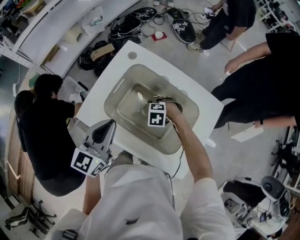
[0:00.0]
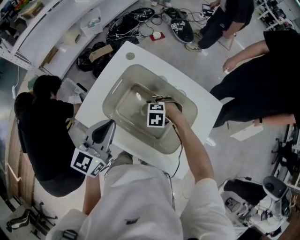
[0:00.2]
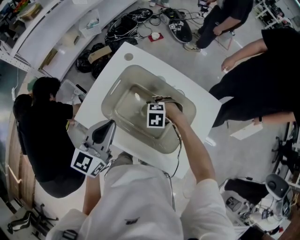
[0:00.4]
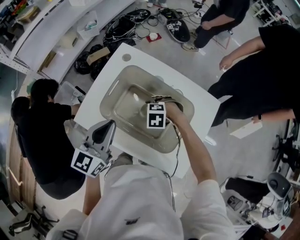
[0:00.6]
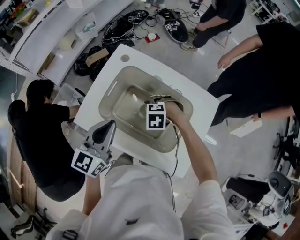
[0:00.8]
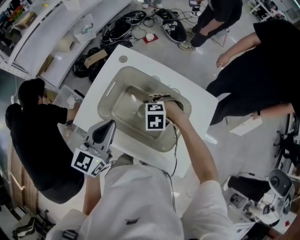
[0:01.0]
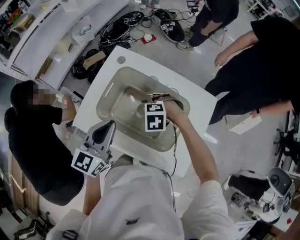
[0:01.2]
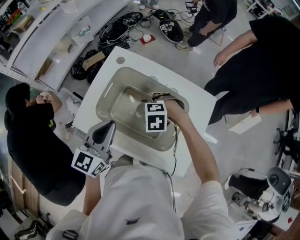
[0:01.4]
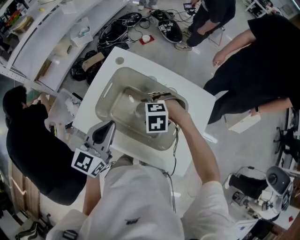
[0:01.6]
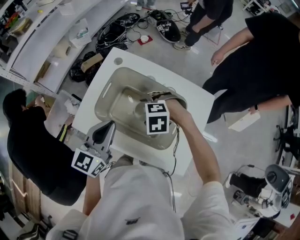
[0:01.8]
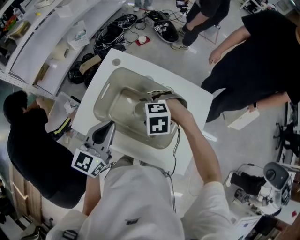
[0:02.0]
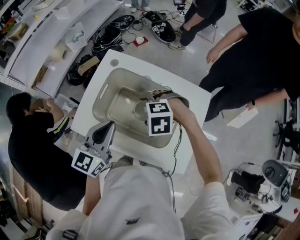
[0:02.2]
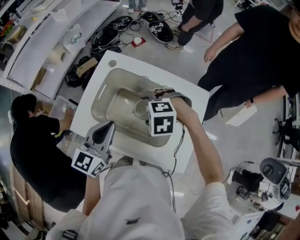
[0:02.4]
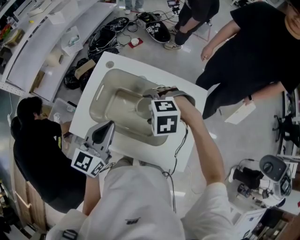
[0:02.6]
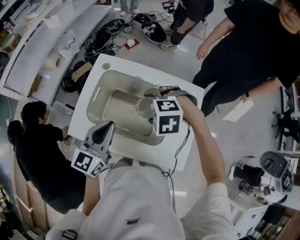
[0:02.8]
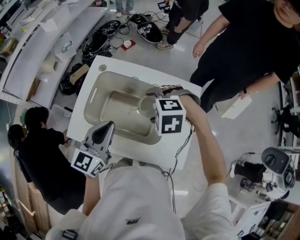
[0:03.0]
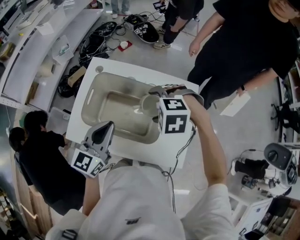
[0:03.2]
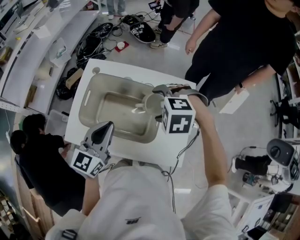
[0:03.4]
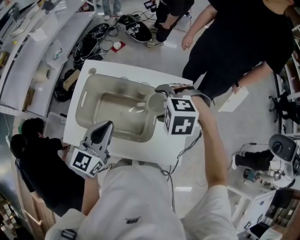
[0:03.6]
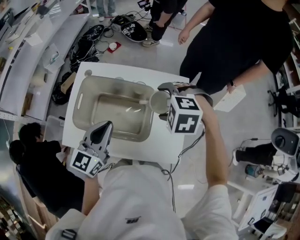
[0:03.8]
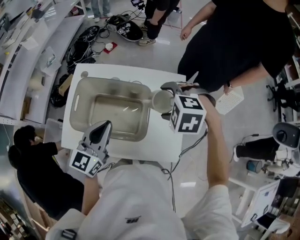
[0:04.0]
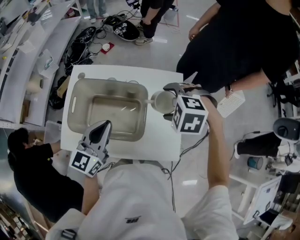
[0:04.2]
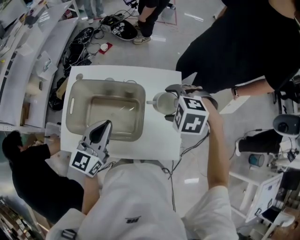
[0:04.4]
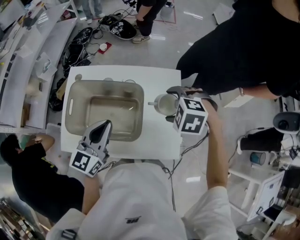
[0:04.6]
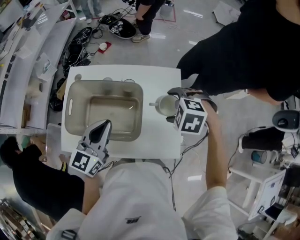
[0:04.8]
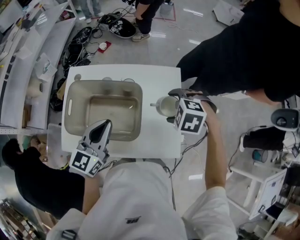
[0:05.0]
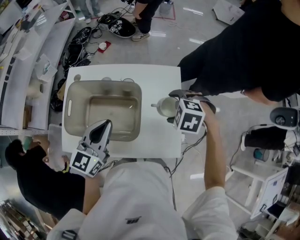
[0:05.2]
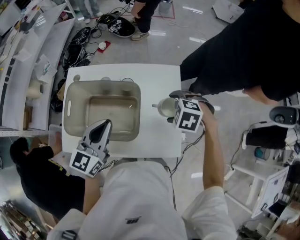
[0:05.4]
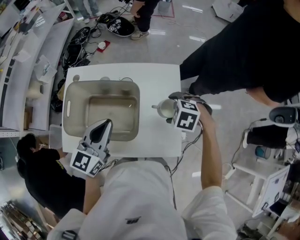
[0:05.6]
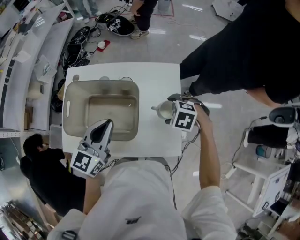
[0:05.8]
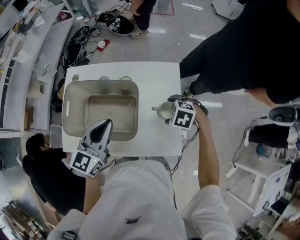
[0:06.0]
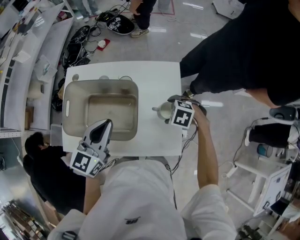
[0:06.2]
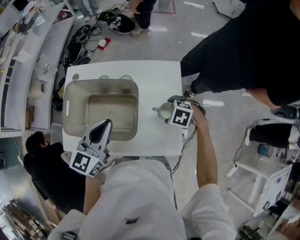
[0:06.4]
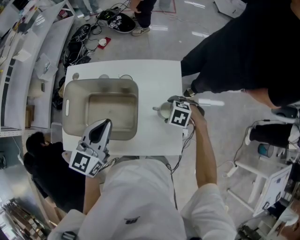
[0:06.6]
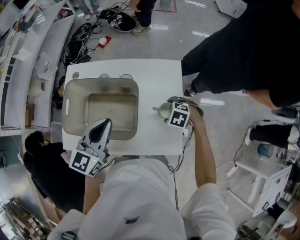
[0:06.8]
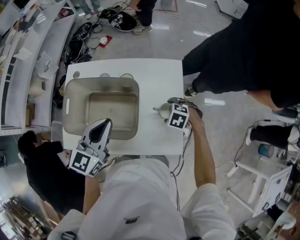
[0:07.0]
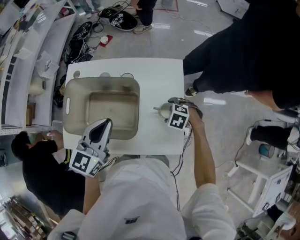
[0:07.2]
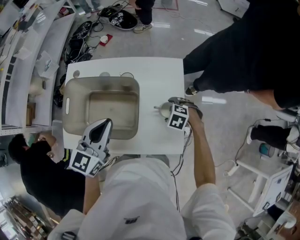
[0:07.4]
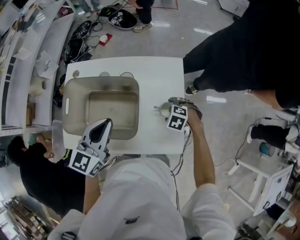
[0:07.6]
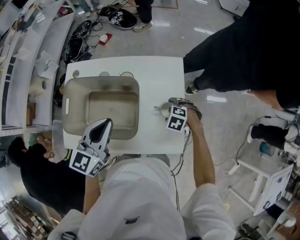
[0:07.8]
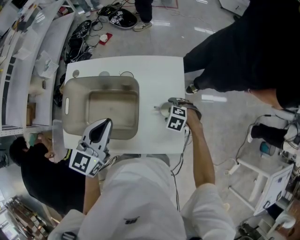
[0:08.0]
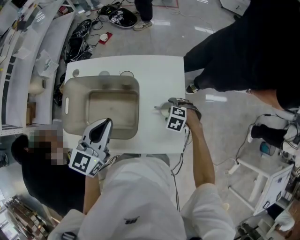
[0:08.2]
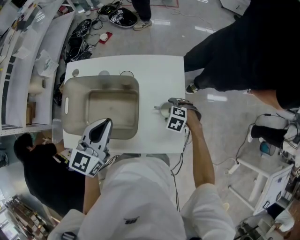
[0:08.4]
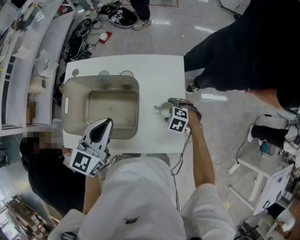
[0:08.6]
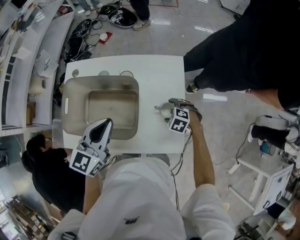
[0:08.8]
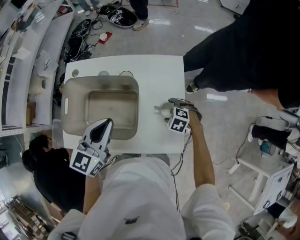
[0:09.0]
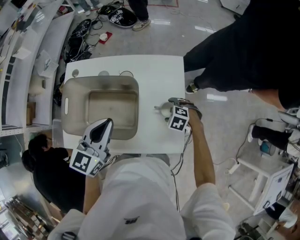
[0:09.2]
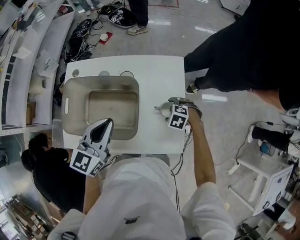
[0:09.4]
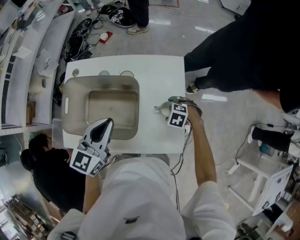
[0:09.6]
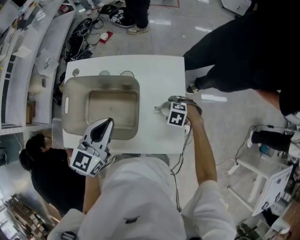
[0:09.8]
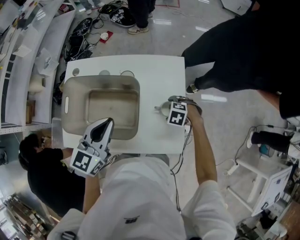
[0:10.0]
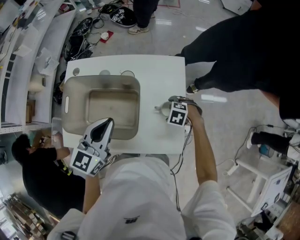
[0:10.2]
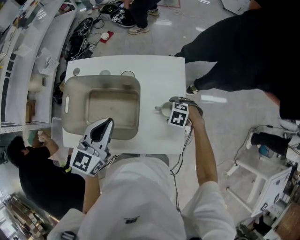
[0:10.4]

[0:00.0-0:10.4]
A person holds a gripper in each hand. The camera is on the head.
0:00.0 to 0:01.4: The right gripper is displaced upward by approximately 10 cm.
0:01.4 to 0:03.0: The left gripper ends up approximately 5 cm from where it was. The right gripper moves upward, about 15 cm.
0:03.0 to 0:04.4: The left gripper goes approximately 10 cm to the right. The right gripper heads to the right, covering about 15 cm, and rotates some 20 degrees.
0:04.4 to 0:06.0: The right gripper heads downward, covering roughly 15 cm.
0:06.0 to 0:07.4: The right gripper heads downward, covering about 10 cm.
0:07.4 to 0:10.4: The grippers stay close to where they were, moving slightly.

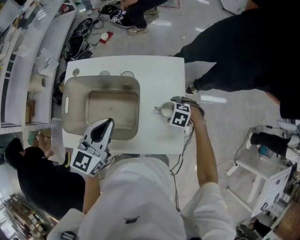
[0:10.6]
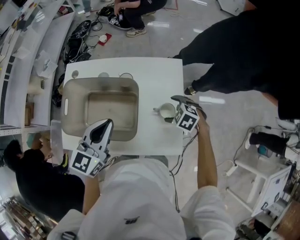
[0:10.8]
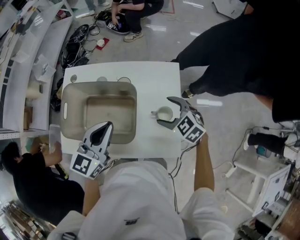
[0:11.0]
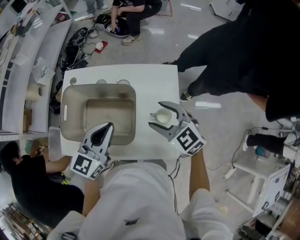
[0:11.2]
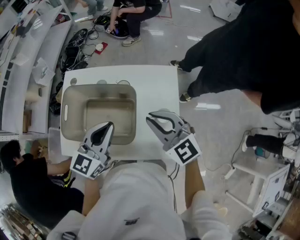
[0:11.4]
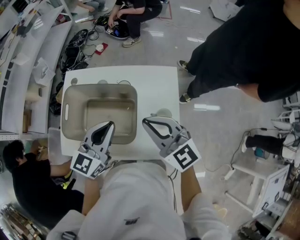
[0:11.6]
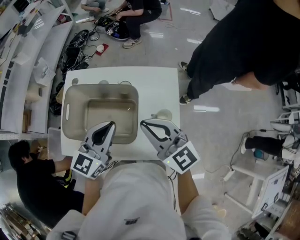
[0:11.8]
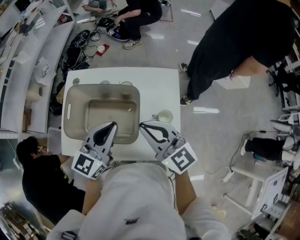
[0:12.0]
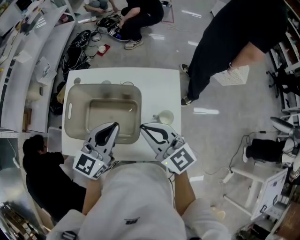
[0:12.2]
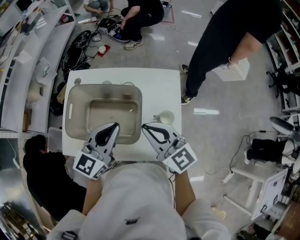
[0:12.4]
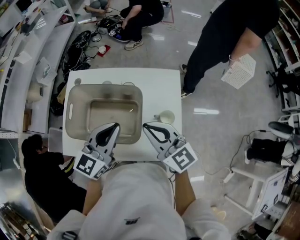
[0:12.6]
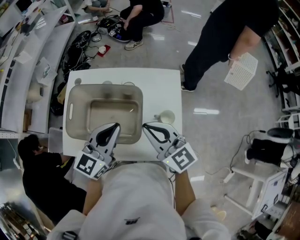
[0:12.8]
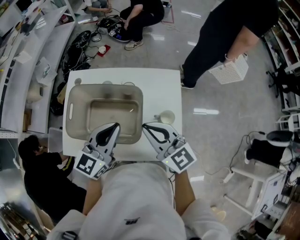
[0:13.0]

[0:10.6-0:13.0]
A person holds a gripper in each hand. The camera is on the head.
0:10.6 to 0:11.8: The right gripper is displaced upward by approximately 35 cm, points its fingers some 80 degrees further upward, and closes up.
0:11.8 to 0:13.0: The grippers move only a little.

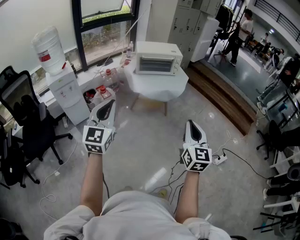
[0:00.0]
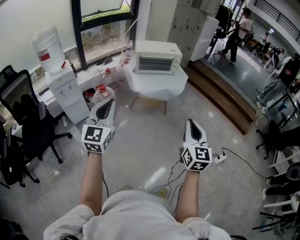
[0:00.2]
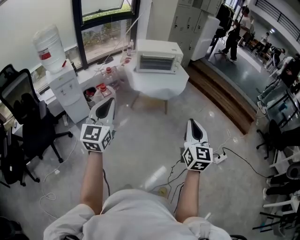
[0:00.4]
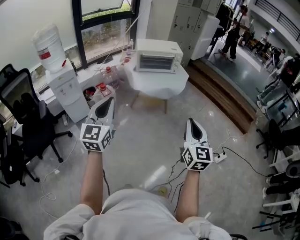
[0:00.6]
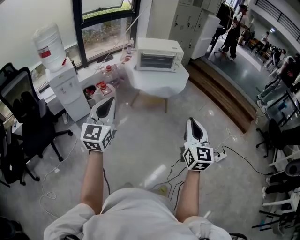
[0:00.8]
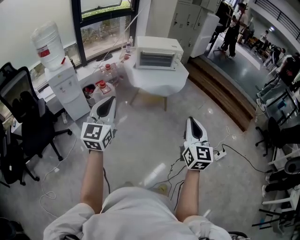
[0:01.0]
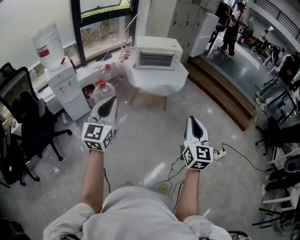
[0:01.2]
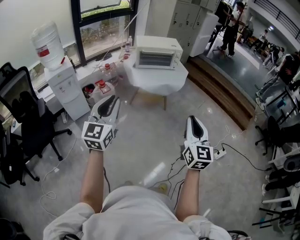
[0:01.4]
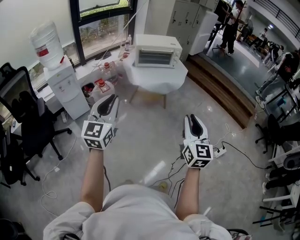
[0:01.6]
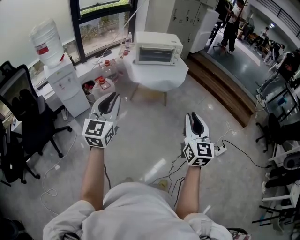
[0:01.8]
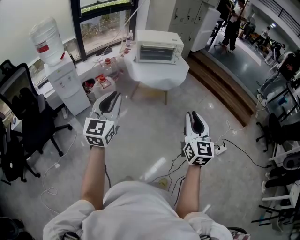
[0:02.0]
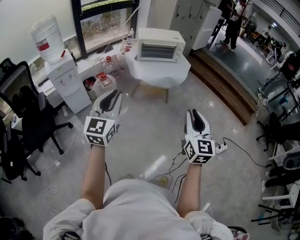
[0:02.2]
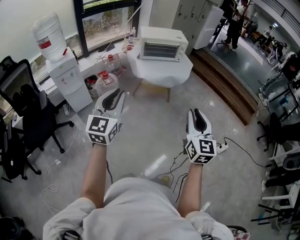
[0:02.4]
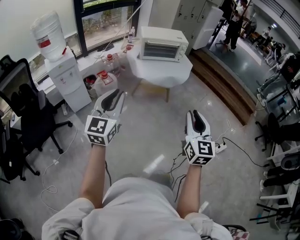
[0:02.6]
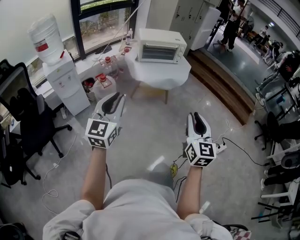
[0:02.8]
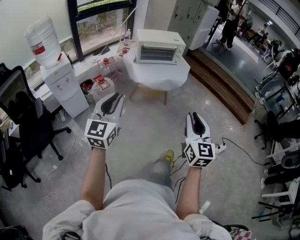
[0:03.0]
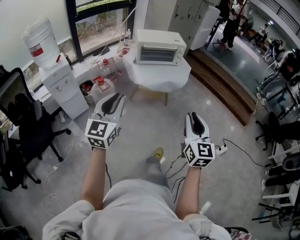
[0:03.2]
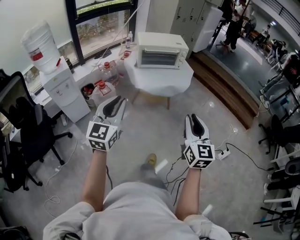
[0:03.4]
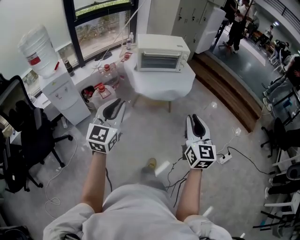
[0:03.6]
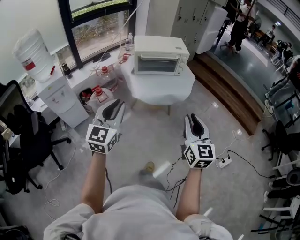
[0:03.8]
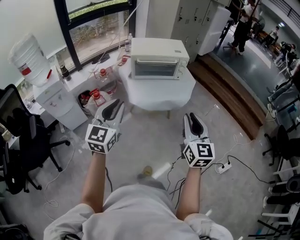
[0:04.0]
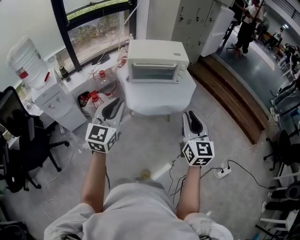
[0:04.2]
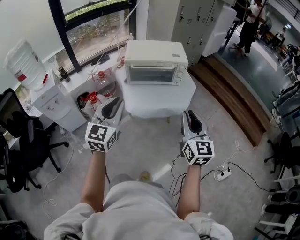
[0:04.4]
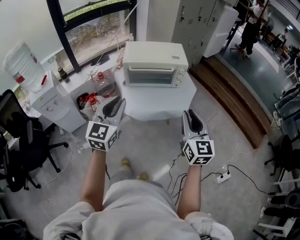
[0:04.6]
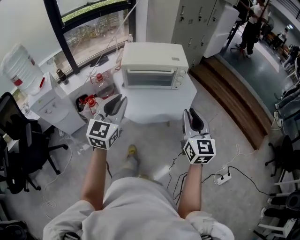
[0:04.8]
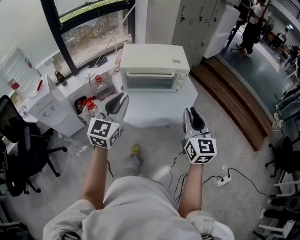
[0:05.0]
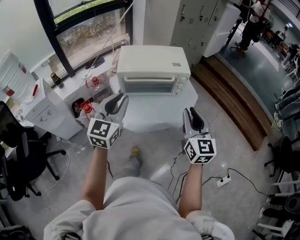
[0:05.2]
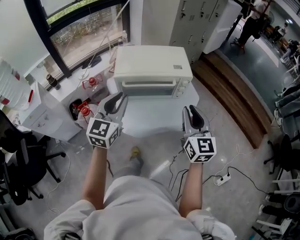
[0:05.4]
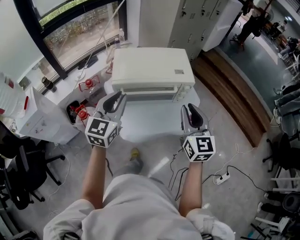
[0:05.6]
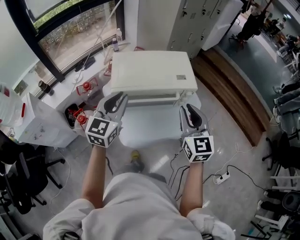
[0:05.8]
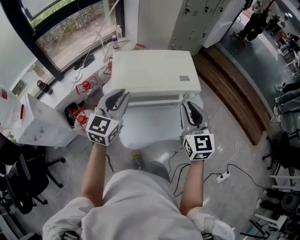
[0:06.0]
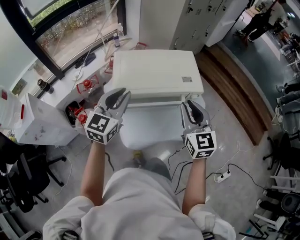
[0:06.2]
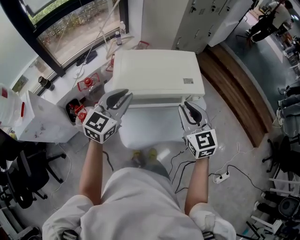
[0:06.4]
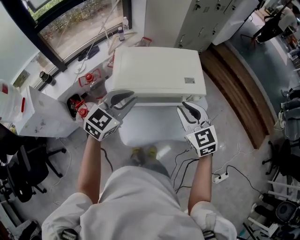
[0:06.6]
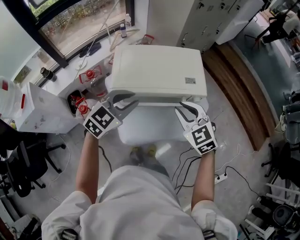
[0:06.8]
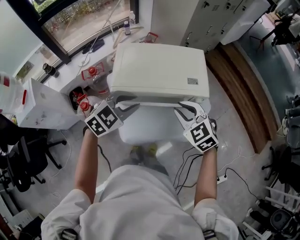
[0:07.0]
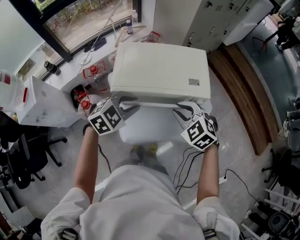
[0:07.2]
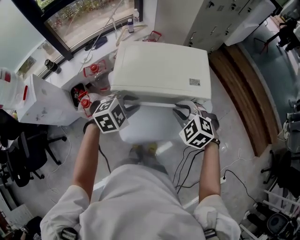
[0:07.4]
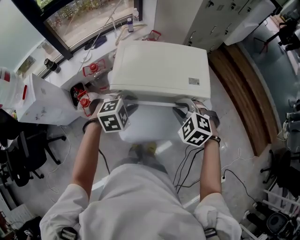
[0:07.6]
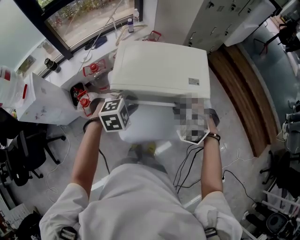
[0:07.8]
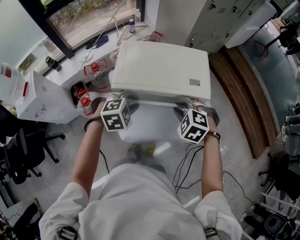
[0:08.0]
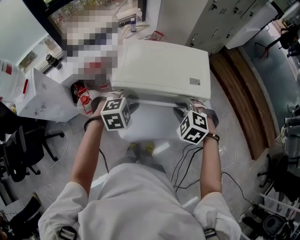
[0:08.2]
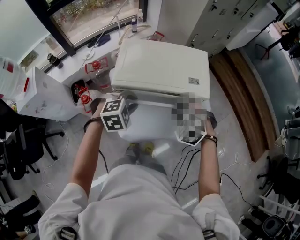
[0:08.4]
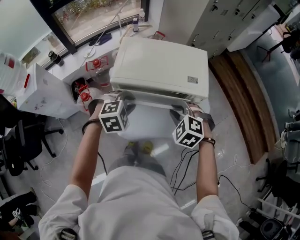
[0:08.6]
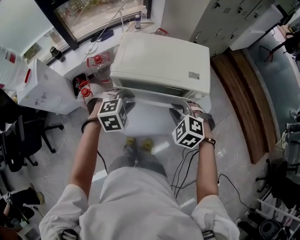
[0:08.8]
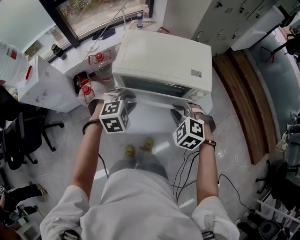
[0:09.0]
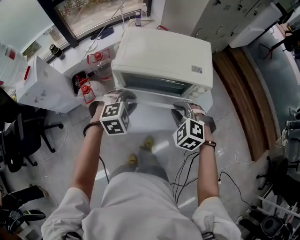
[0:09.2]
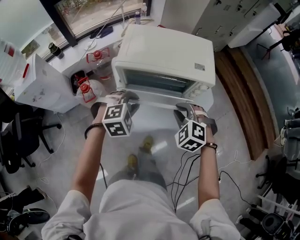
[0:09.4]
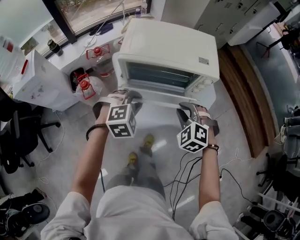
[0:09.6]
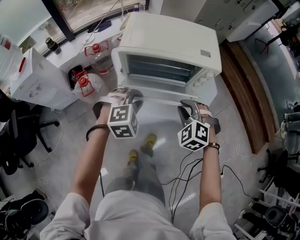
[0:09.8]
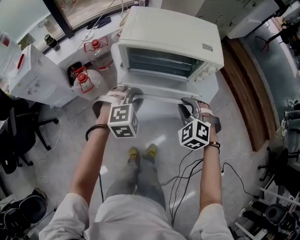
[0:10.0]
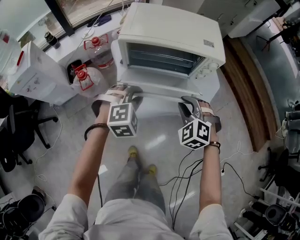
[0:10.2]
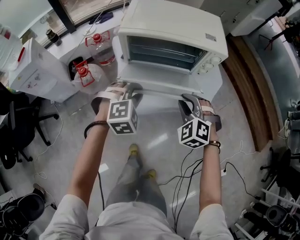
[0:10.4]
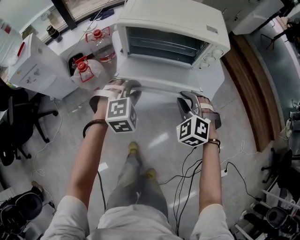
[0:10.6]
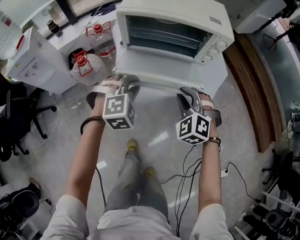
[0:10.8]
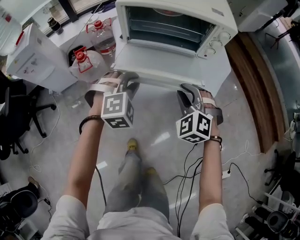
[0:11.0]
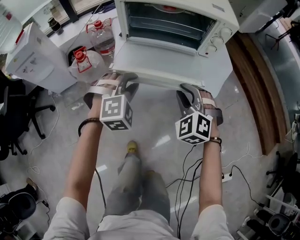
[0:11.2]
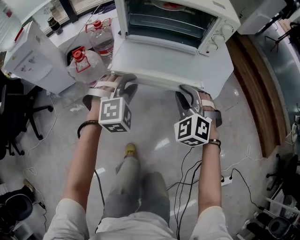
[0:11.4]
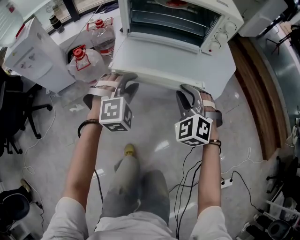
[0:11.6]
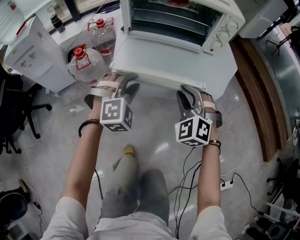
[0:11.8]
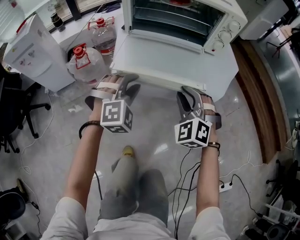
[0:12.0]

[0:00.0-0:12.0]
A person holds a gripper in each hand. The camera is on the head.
0:00.0 to 0:01.6: There are only small adjustments of the grippers.
0:01.6 to 0:03.0: The left gripper shifts by roughly 5 cm, while the right gripper shifts by some 5 cm.
0:03.0 to 0:04.4: Both grippers travel together forward, some 35 cm.
0:04.4 to 0:06.0: The grippers both shift forward by approximately 35 cm.
0:06.0 to 0:07.6: The two grippers go about 15 cm downward. The right gripper angles its fingers downward, by some 40 degrees. Meanwhile the left gripper angles its fingers downward, by some 50 degrees.
0:07.6 to 0:09.0: The left gripper shifts by roughly 5 cm. Meanwhile the right gripper heads backward, covering roughly 5 cm.
0:09.0 to 0:10.4: Both grippers travel together backward and downward, about 10 cm.
0:10.4 to 0:12.0: The grippers both shift downward by approximately 15 cm.
